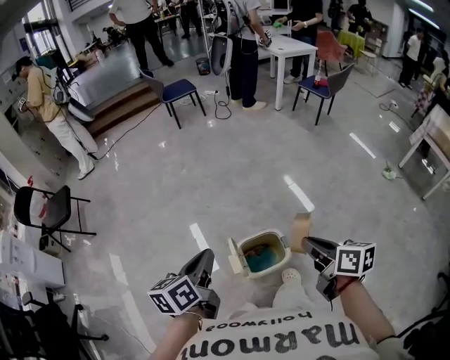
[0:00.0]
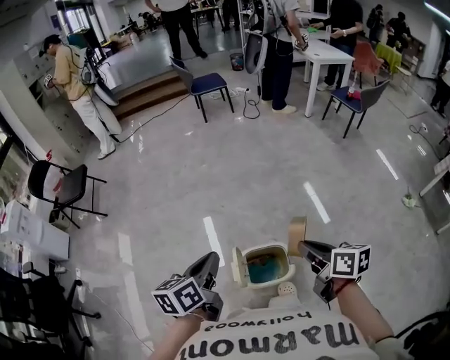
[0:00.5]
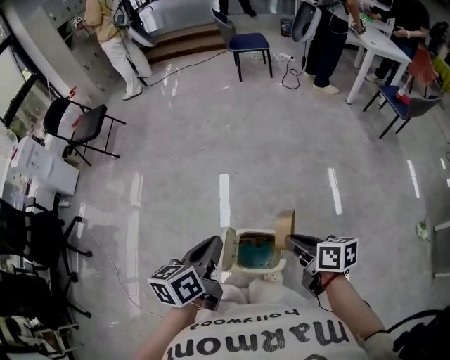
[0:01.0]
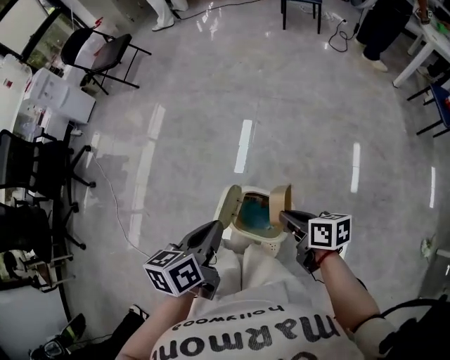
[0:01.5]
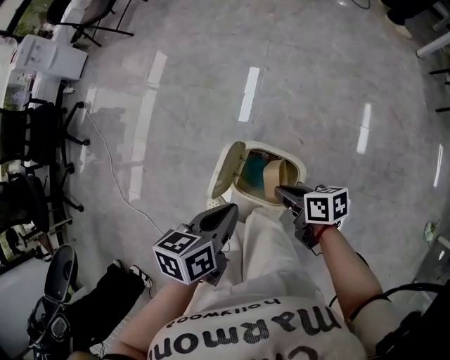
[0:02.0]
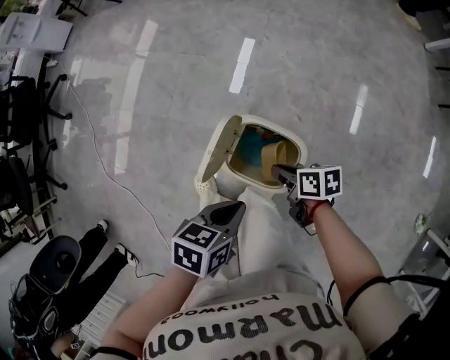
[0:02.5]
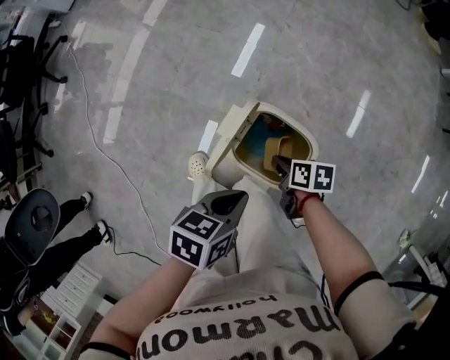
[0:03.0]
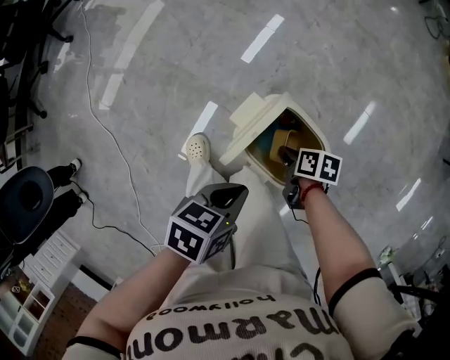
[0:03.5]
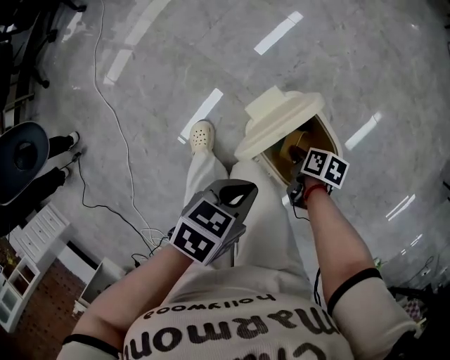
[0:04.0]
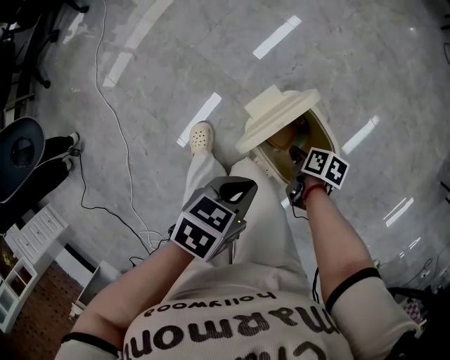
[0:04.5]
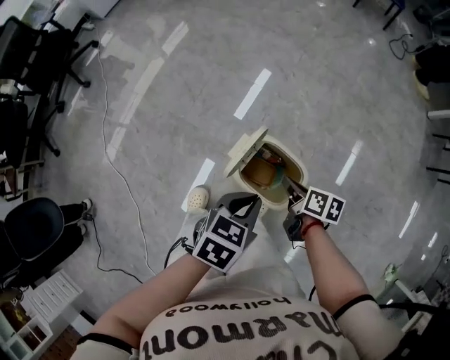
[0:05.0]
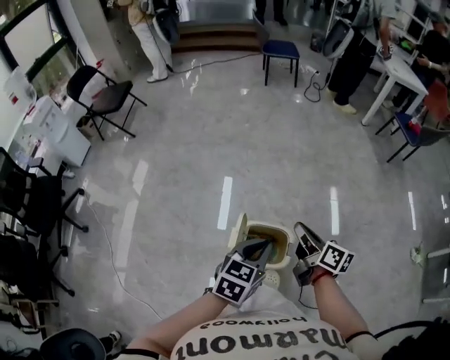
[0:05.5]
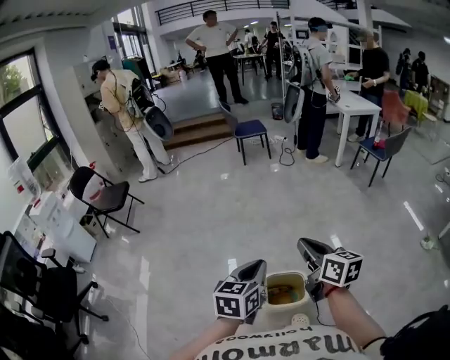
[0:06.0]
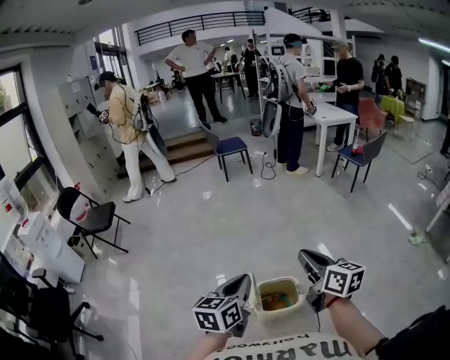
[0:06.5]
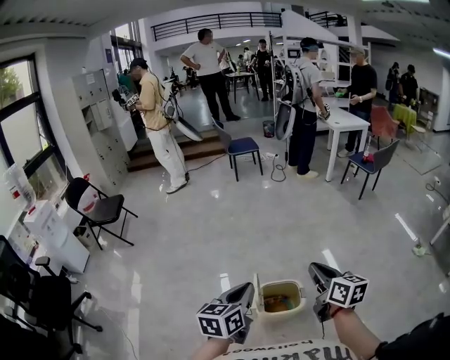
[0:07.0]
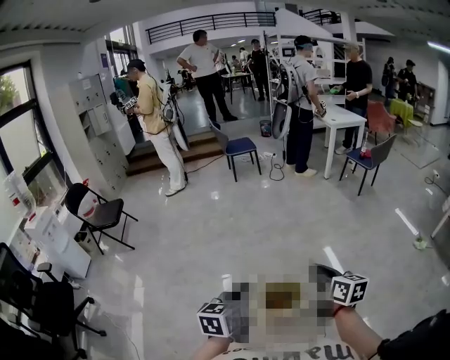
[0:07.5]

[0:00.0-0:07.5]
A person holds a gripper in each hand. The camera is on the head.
0.0 to 2.0 s: The left gripper moves downward, about 20 cm, and turns by about 30 degrees; the right gripper travels downward by some 30 cm, and rotates roughly 60 degrees.
2.0 to 4.0 s: Both grippers move downward, approximately 20 cm. The right gripper swivels about 30 degrees.
4.0 to 5.5 s: The right gripper heads upward, covering about 50 cm, and tilts its fingers roughly 40 degrees upward, while the left gripper goes about 30 cm upward, and rotates around the line of its fingers by approximately 40 degrees, clockwise from behind.
5.5 to 7.5 s: The left gripper shifts roughly 20 cm to the left, upward and backward. The right gripper travels upward and backward by about 20 cm, and turns by some 30 degrees.

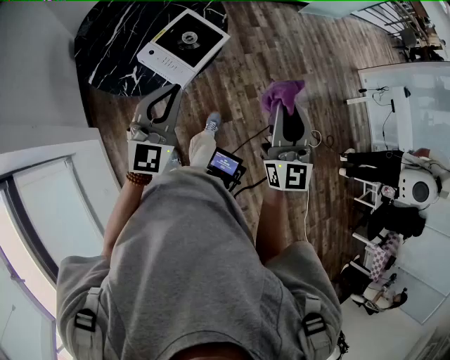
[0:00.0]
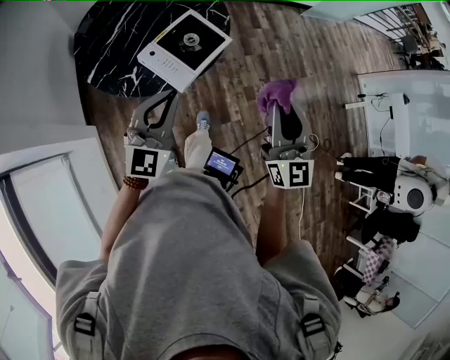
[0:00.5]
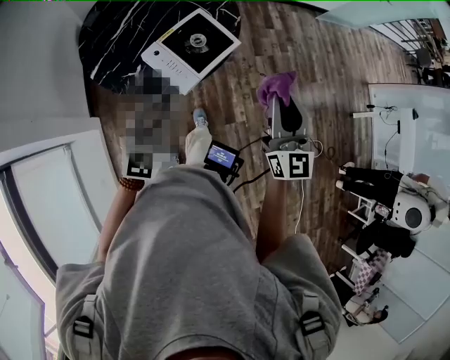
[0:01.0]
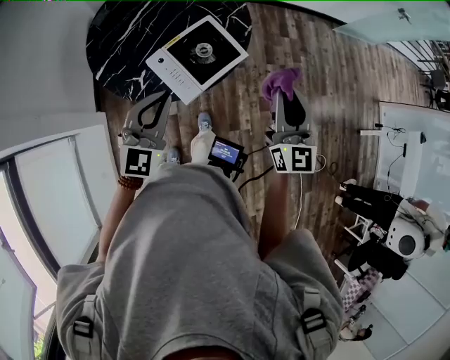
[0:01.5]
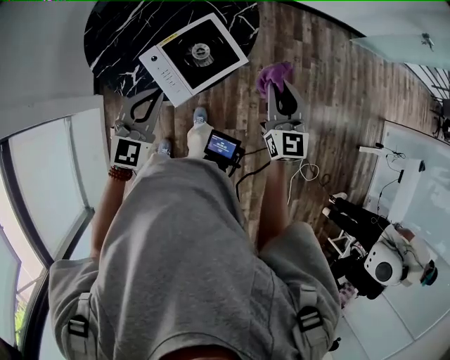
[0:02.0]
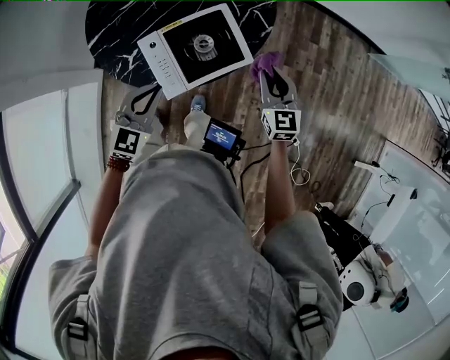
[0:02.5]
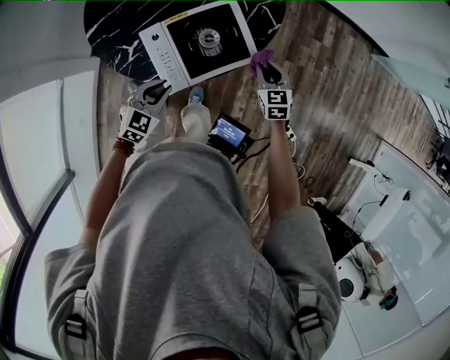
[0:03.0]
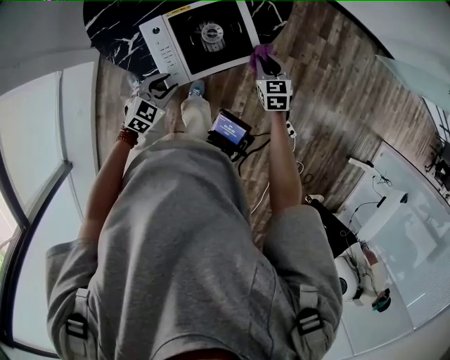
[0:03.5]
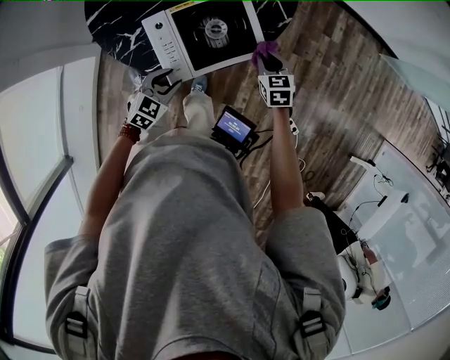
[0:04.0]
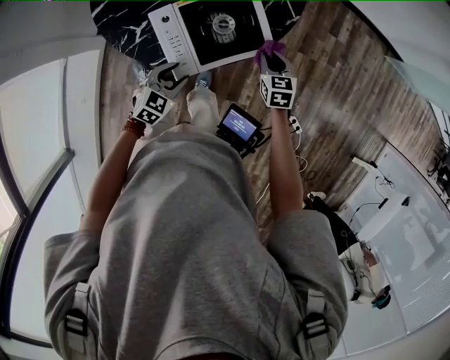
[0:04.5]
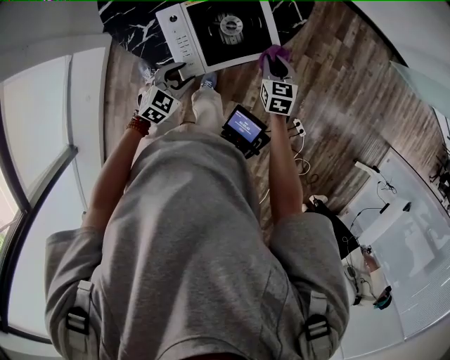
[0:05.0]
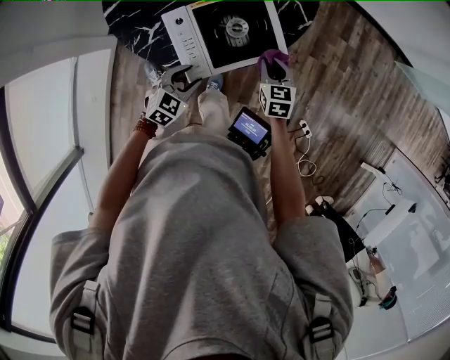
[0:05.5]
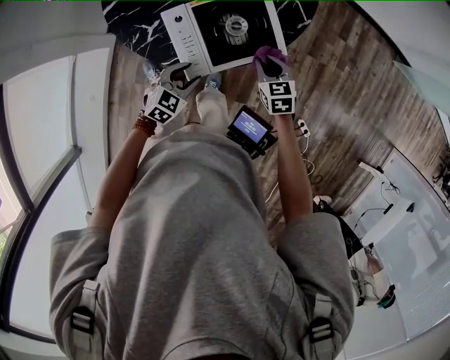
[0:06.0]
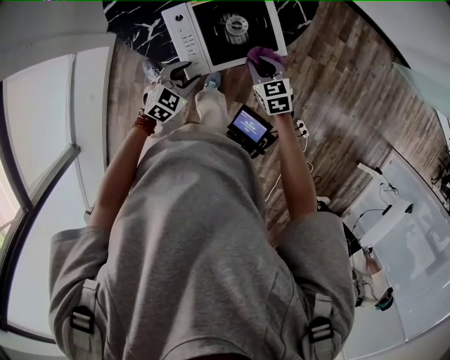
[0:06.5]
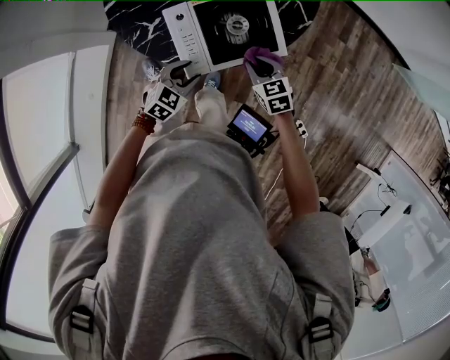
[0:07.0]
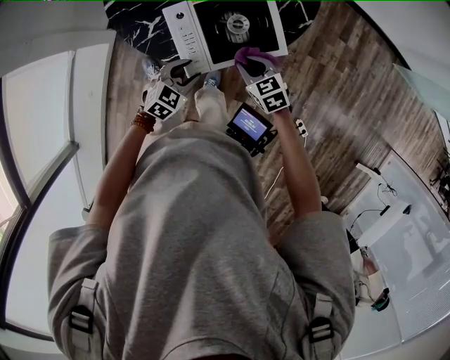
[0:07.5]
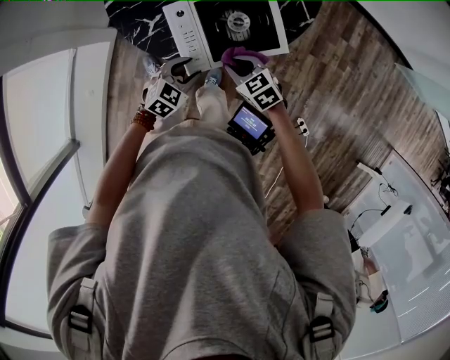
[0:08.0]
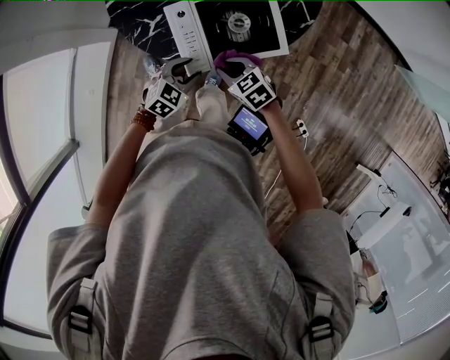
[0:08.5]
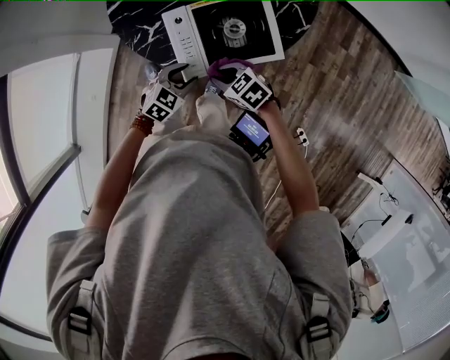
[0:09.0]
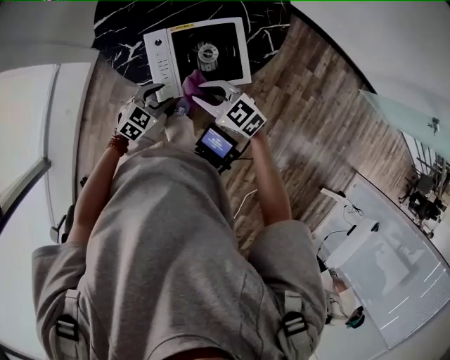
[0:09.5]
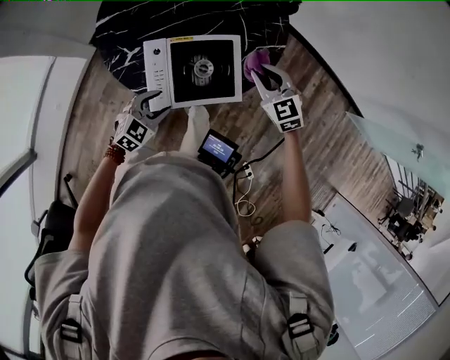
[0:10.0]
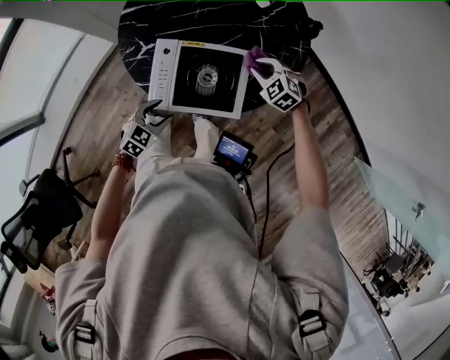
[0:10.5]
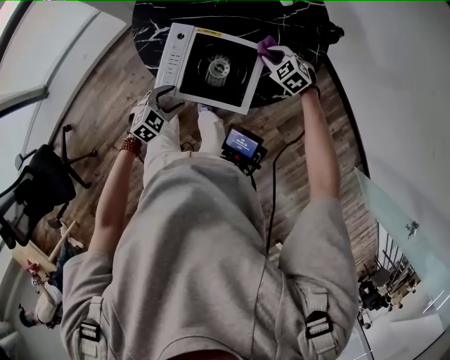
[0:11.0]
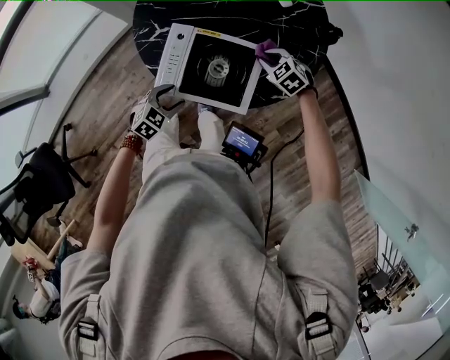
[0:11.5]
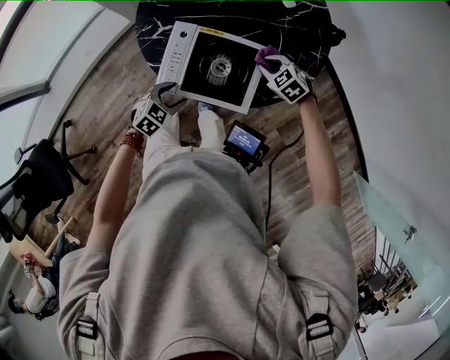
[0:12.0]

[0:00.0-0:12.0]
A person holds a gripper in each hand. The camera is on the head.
0.0 to 2.0 s: The right gripper goes roughly 30 cm forward and downward, and turns by about 30 degrees. Meanwhile the left gripper is displaced forward and downward by about 20 cm, and swivels about 20 degrees.
2.0 to 4.0 s: The grippers both shift downward by some 25 cm. The right gripper angles its fingers downward, by some 40 degrees, while the left gripper swivels some 30 degrees, and opens up.
4.0 to 6.0 s: The right gripper is displaced to the left by roughly 5 cm.
6.0 to 8.0 s: The right gripper moves to the left, about 10 cm, and rotates approximately 30 degrees.
8.0 to 10.0 s: The right gripper ends up some 25 cm from where it was, and swivels about 30 degrees, while the left gripper travels upward by about 5 cm.
10.0 to 12.0 s: The left gripper heads downward, covering some 5 cm, and turns by some 30 degrees. Meanwhile the right gripper heads downward, covering about 15 cm, and rotates roughly 40 degrees.

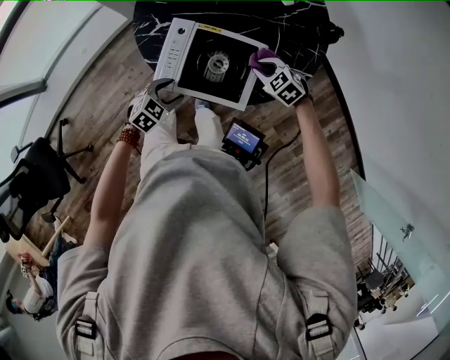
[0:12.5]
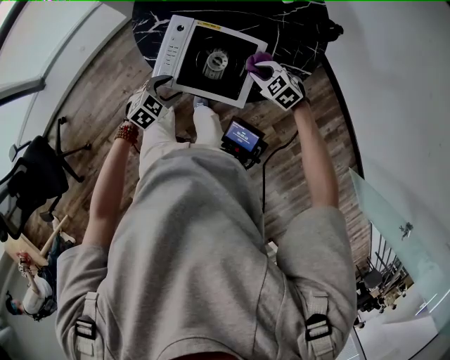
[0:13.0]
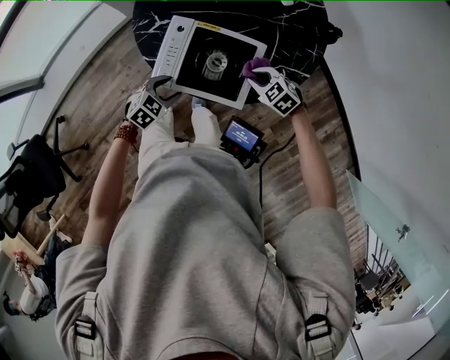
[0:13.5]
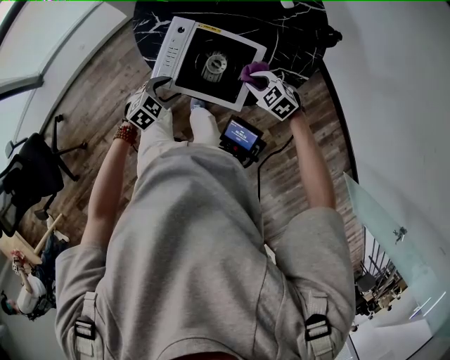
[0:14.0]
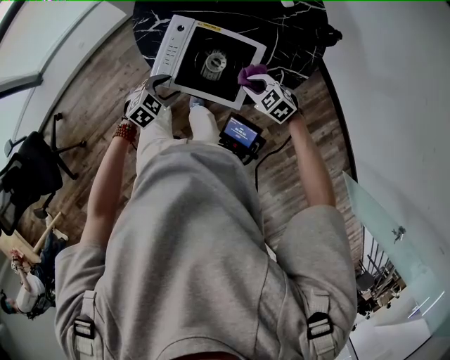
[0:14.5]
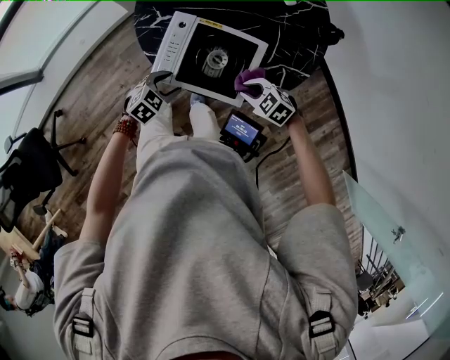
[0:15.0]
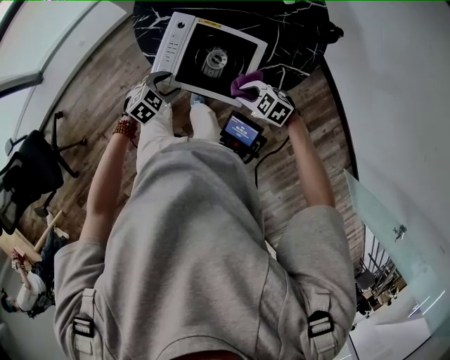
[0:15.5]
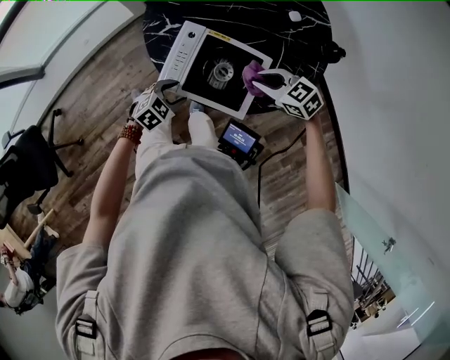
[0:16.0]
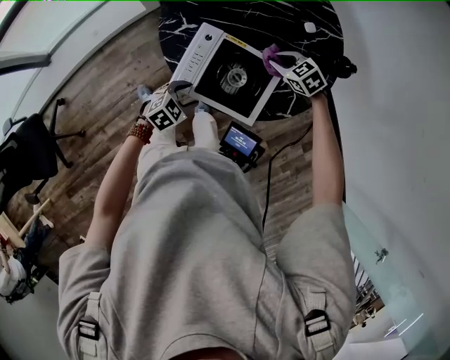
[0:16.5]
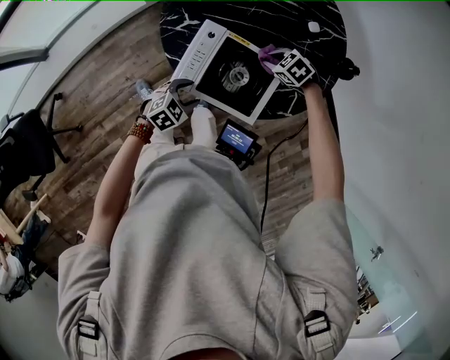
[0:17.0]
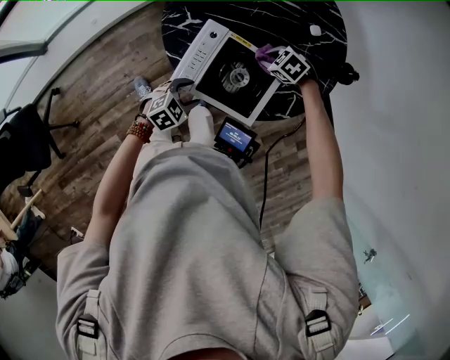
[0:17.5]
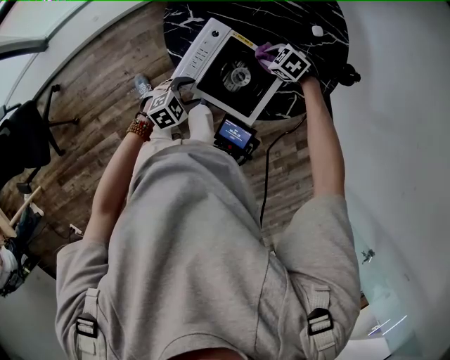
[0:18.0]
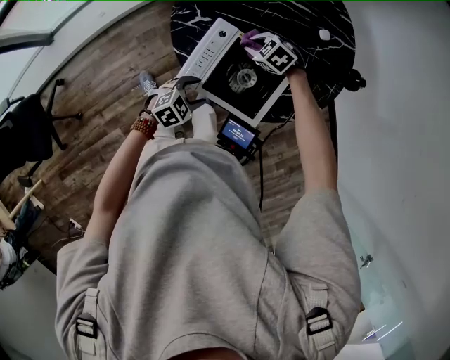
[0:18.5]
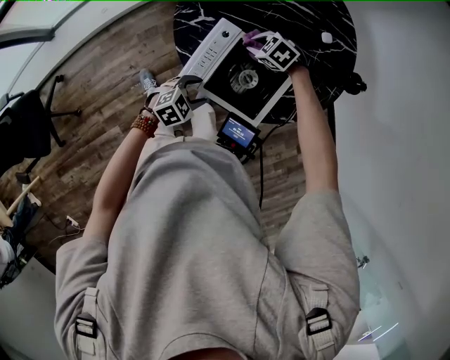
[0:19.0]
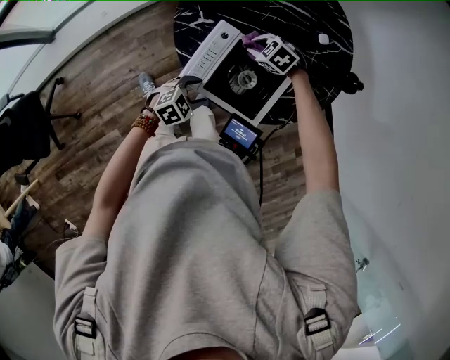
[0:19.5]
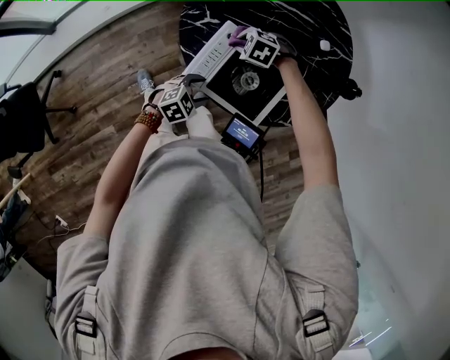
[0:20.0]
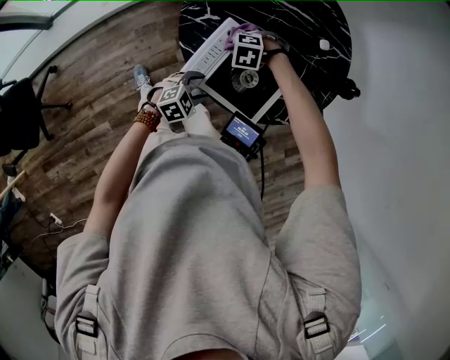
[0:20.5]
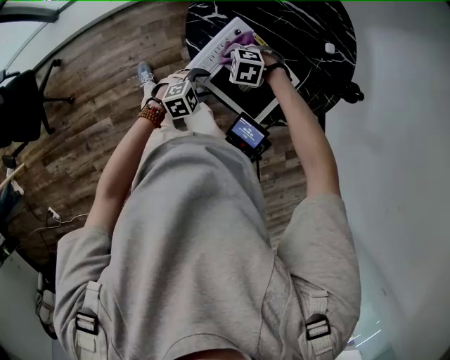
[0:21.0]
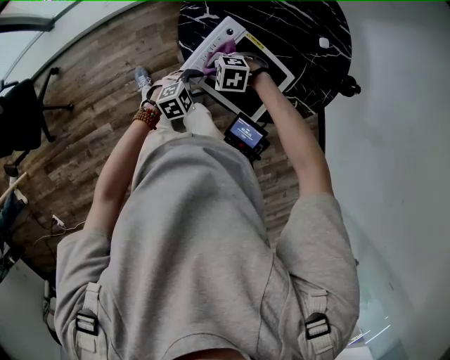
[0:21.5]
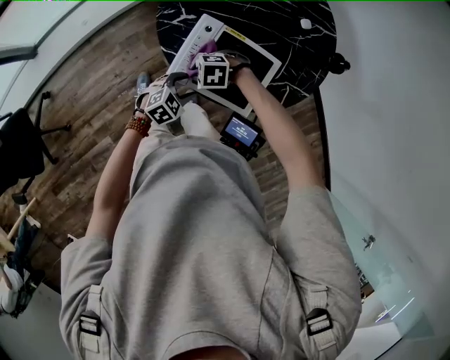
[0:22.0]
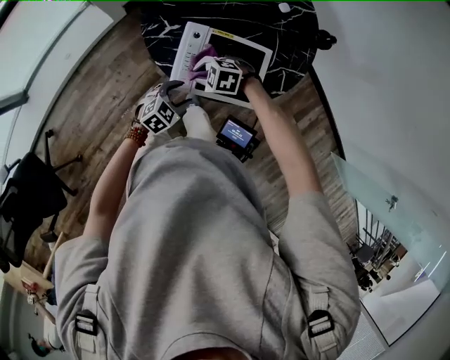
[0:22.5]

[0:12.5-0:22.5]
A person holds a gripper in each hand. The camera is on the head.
12.5 to 14.5 s: The right gripper moves backward, approximately 5 cm.
14.5 to 16.5 s: The right gripper ends up some 15 cm from where it was.
16.5 to 18.5 s: The right gripper changes place by some 15 cm.
18.5 to 20.5 s: The right gripper ends up approximately 10 cm from where it was, and rotates approximately 40 degrees.
20.5 to 22.5 s: The right gripper moves some 10 cm, and swivels approximately 30 degrees.
